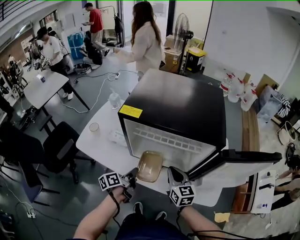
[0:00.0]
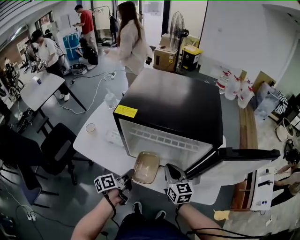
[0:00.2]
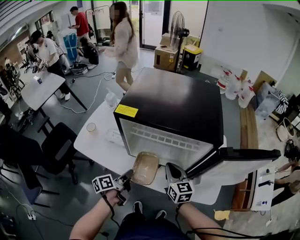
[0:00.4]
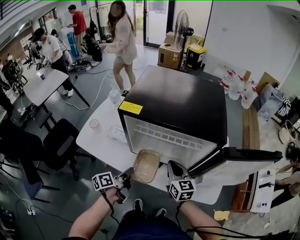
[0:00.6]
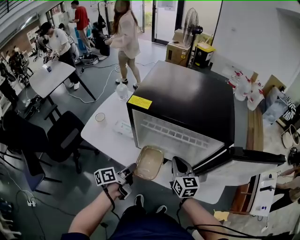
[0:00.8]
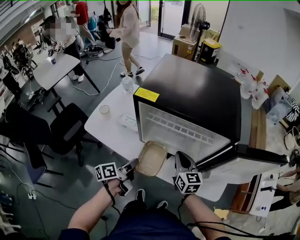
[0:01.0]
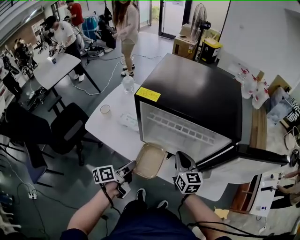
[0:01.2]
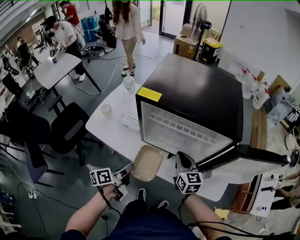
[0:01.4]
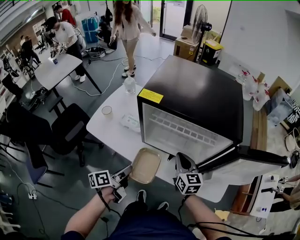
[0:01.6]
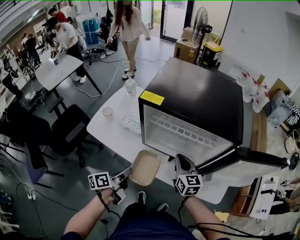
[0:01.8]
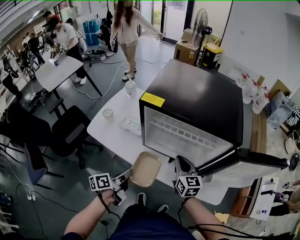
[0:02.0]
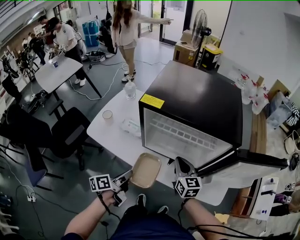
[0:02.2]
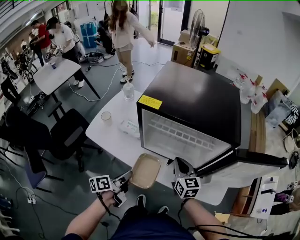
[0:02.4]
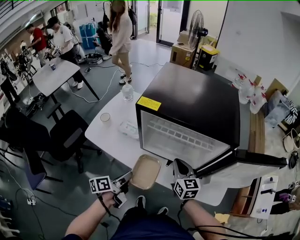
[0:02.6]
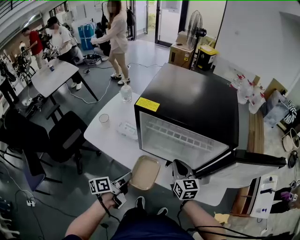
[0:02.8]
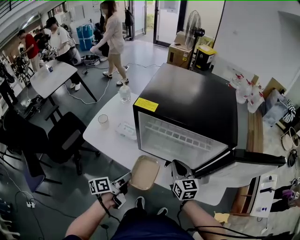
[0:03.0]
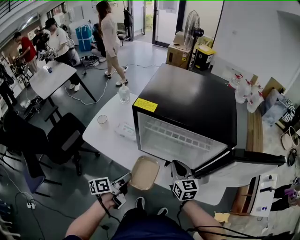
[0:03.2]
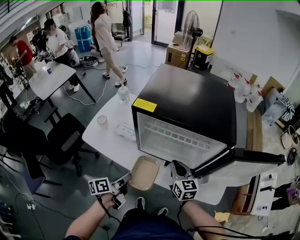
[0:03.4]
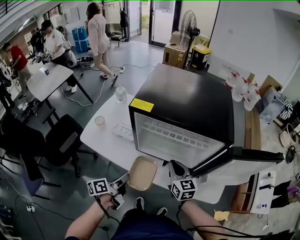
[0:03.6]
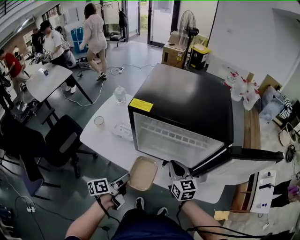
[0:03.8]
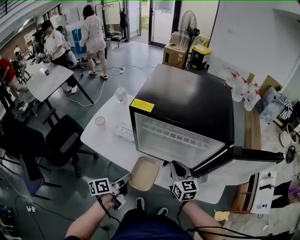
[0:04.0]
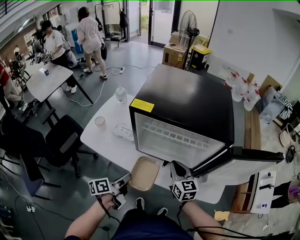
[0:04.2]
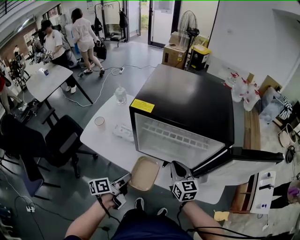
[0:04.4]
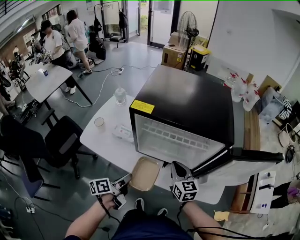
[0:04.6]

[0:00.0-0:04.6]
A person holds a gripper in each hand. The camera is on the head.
0:00.0 to 0:01.6: The left gripper moves backward and to the left, approximately 10 cm.
0:01.6 to 0:03.0: Both grippers stay about where they are.
0:03.0 to 0:04.6: The two grippers keep their place.

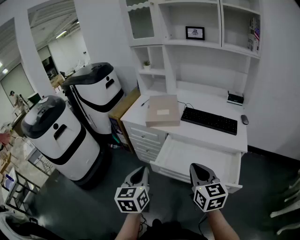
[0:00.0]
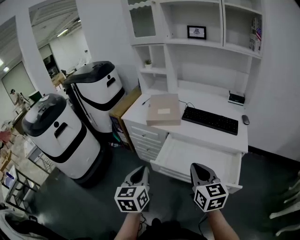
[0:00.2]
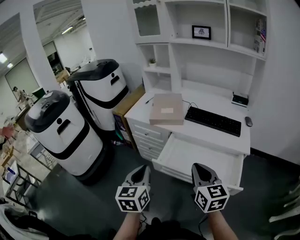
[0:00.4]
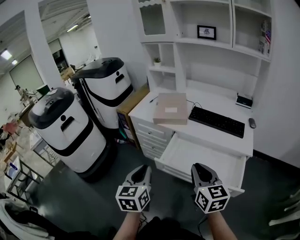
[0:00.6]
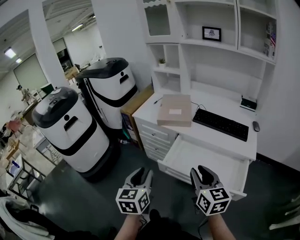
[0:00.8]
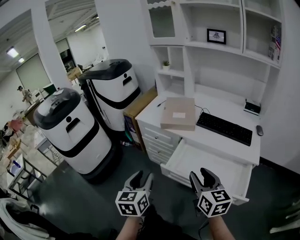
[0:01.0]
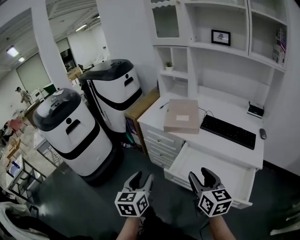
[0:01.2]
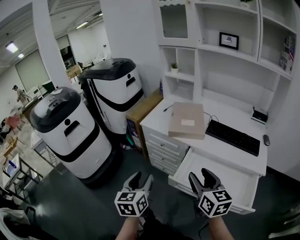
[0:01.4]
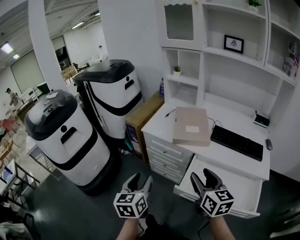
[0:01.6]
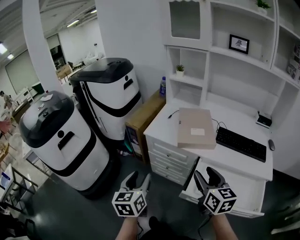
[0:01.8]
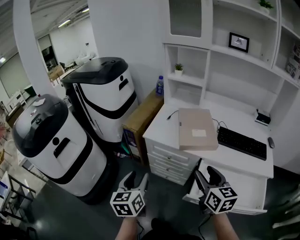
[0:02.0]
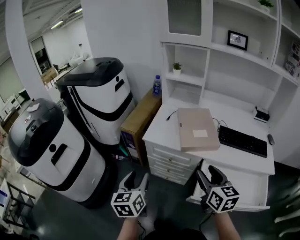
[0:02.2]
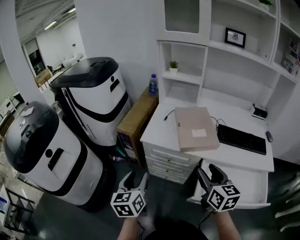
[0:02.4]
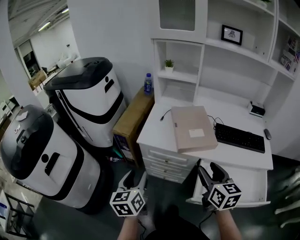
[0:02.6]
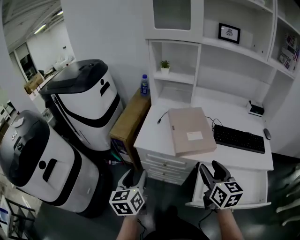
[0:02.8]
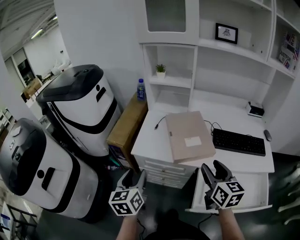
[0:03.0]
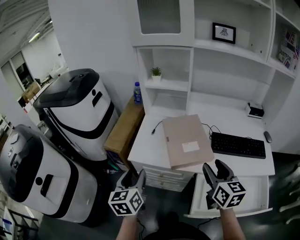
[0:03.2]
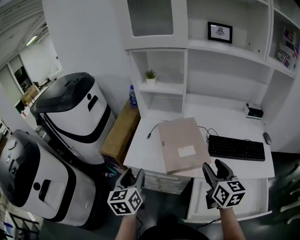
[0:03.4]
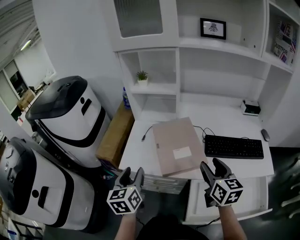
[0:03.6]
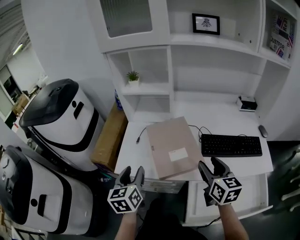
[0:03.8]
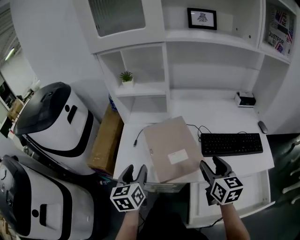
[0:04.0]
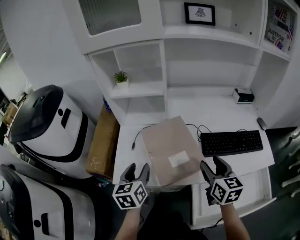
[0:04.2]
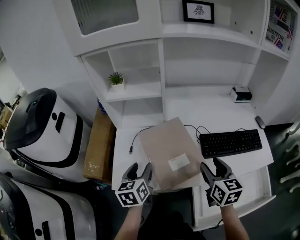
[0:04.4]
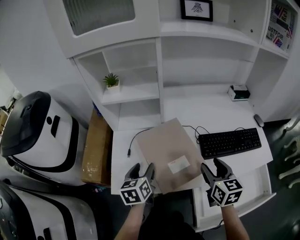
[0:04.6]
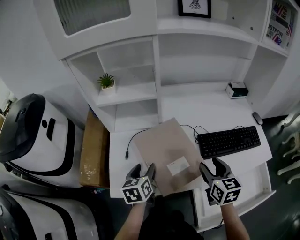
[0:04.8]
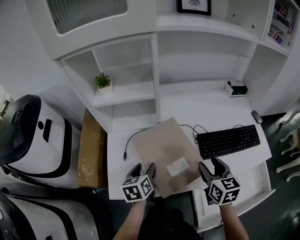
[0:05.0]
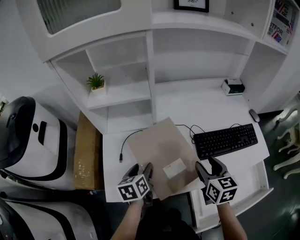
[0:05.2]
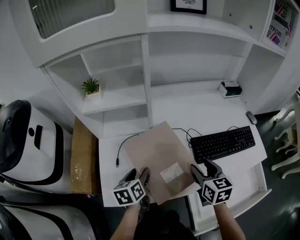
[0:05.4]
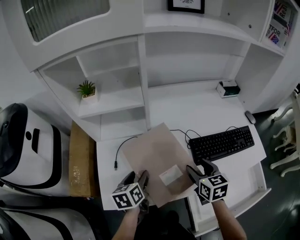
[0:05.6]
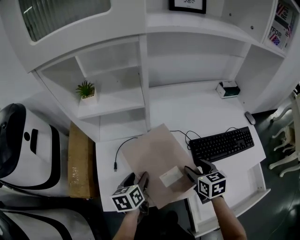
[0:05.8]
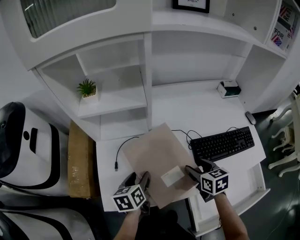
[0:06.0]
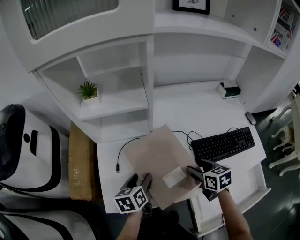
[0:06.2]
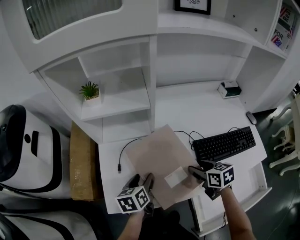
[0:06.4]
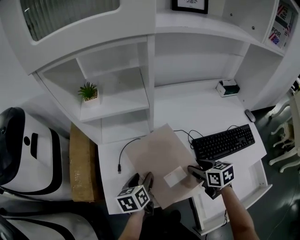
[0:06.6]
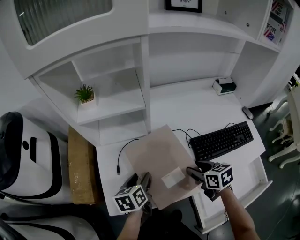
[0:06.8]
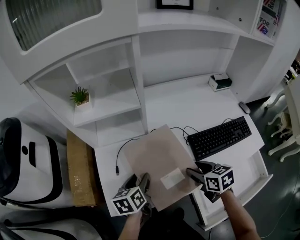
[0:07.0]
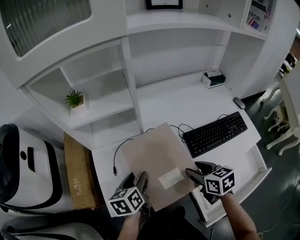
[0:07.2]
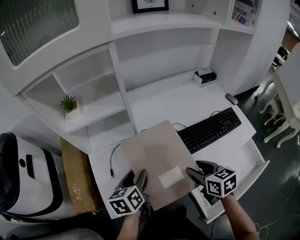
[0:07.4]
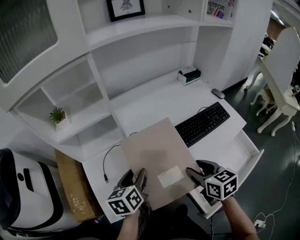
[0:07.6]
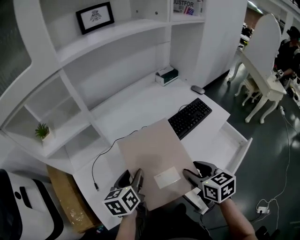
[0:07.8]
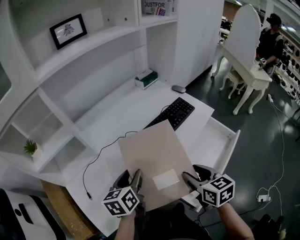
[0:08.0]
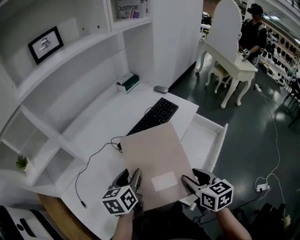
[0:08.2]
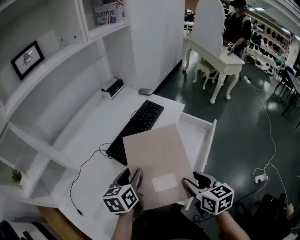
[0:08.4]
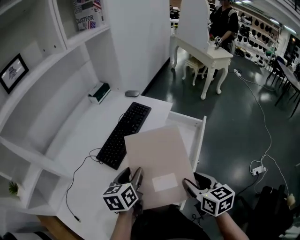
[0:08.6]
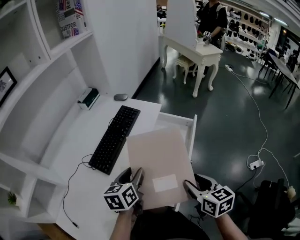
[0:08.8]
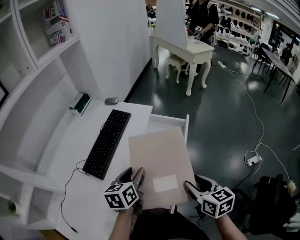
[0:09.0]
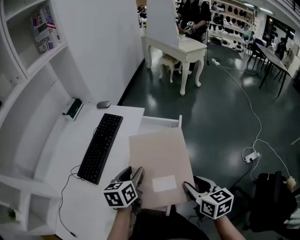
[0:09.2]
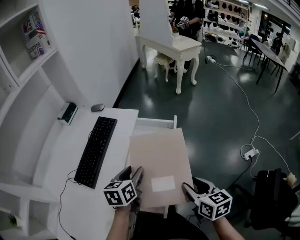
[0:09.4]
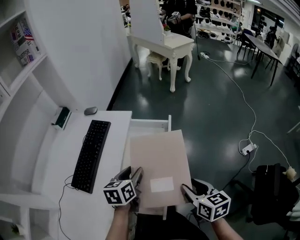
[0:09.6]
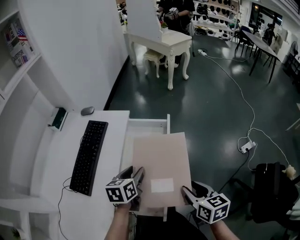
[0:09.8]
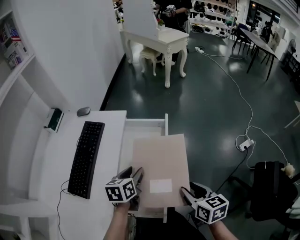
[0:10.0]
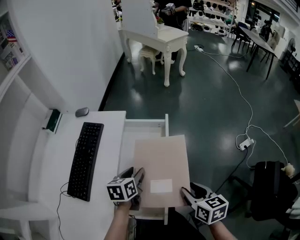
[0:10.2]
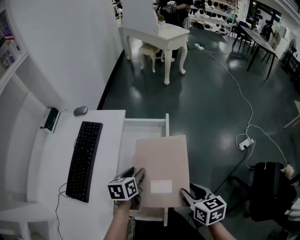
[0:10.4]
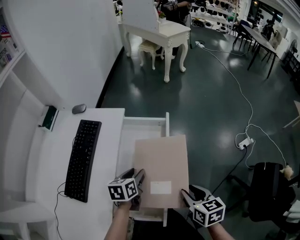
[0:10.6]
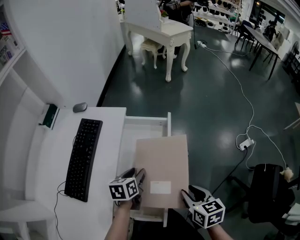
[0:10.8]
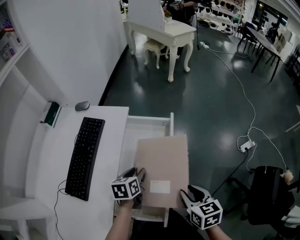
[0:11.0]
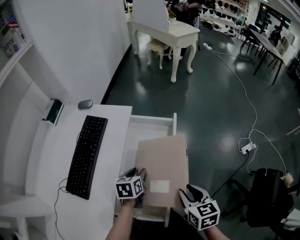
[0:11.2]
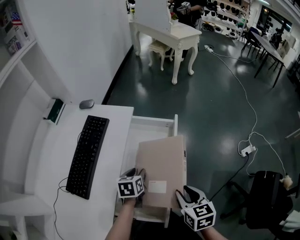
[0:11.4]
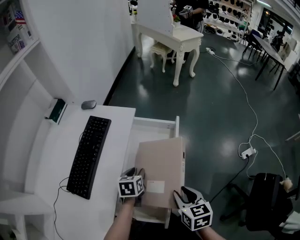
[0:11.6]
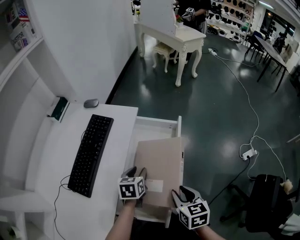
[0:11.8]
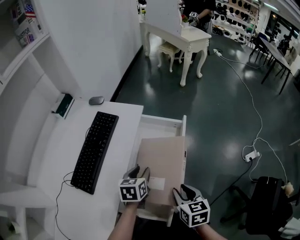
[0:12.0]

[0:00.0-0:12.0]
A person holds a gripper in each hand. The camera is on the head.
0:00.0 to 0:01.6: The left gripper moves to the left and forward, approximately 20 cm, and opens its fingers; the right gripper heads forward and to the left, covering roughly 20 cm, and opens.
0:01.6 to 0:03.0: Both grippers travel together forward, roughly 20 cm.
0:03.0 to 0:04.4: The left gripper is displaced forward and to the right by some 25 cm, while the right gripper heads forward and to the right, covering roughly 15 cm.
0:04.4 to 0:06.0: The grippers both shift downward and forward by about 10 cm.
0:06.0 to 0:07.6: The right gripper shifts approximately 15 cm backward and upward. The left gripper is displaced upward and to the right by about 10 cm.
0:07.6 to 0:09.0: The right gripper changes place by approximately 35 cm, and rotates approximately 50 degrees. The left gripper changes place by some 35 cm, and rotates approximately 50 degrees.
0:09.0 to 0:10.4: The right gripper goes approximately 10 cm downward and to the right. The left gripper travels downward, forward and to the right by some 15 cm, and swivels roughly 20 degrees.
0:10.4 to 0:12.0: The right gripper heads to the left, covering about 5 cm.

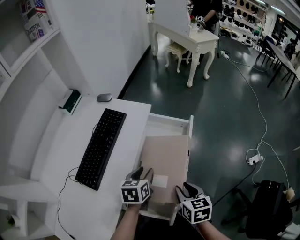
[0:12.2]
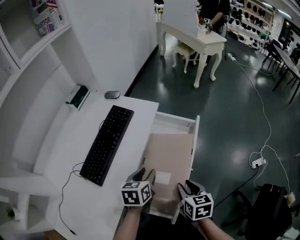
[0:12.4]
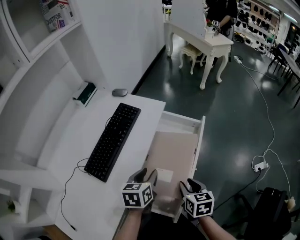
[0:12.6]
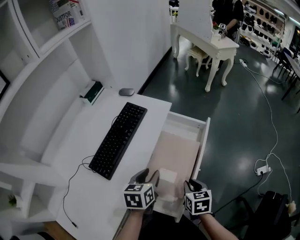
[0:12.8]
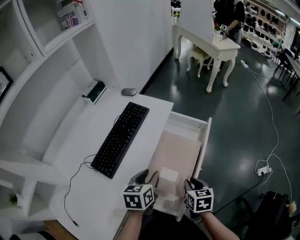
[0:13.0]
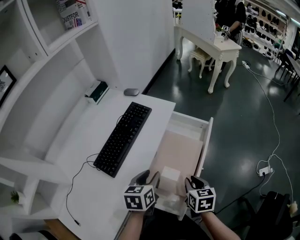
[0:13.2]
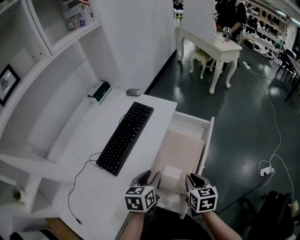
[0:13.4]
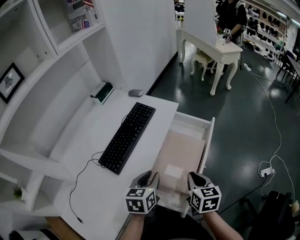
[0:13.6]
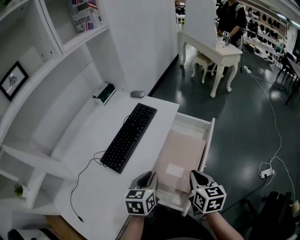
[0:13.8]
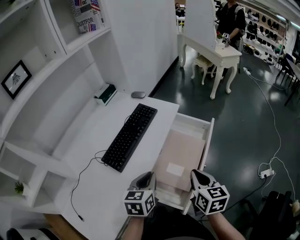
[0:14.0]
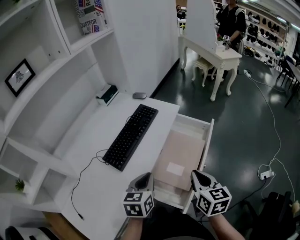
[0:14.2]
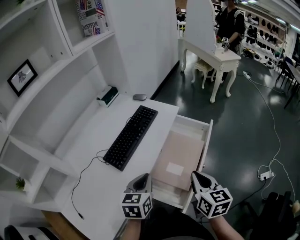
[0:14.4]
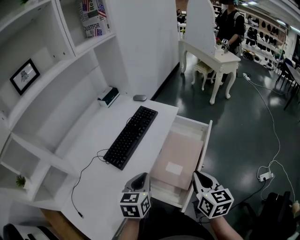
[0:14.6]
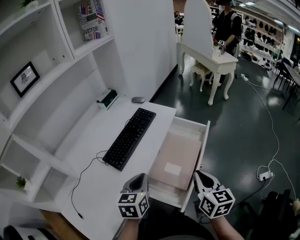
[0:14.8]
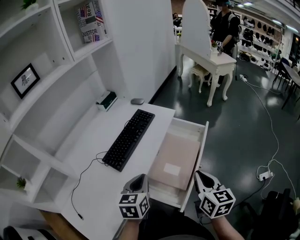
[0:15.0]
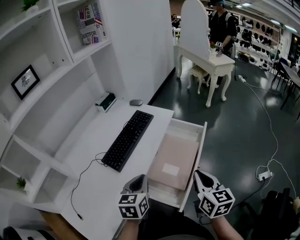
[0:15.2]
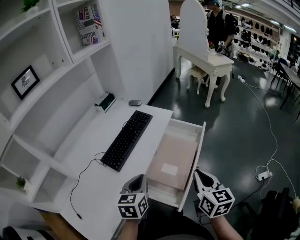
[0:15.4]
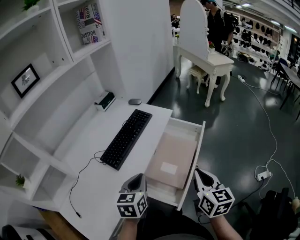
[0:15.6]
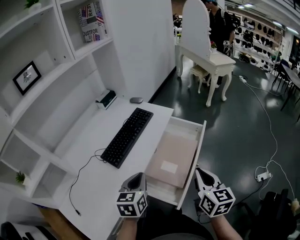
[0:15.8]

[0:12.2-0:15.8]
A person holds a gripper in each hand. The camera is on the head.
0:12.2 to 0:14.0: The left gripper travels backward, upward and to the left by approximately 15 cm, and closes, while the right gripper goes some 10 cm upward and to the left, and closes up.
0:14.0 to 0:15.8: The left gripper ends up about 5 cm from where it was. Meanwhile the right gripper travels upward and backward by about 10 cm.

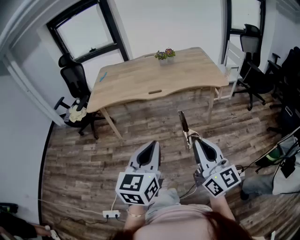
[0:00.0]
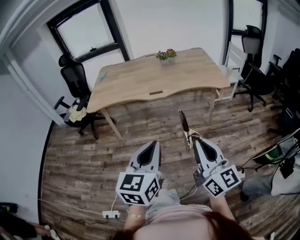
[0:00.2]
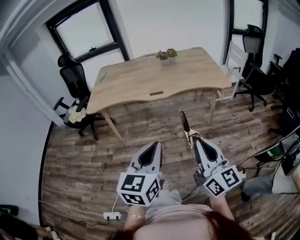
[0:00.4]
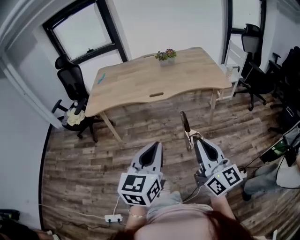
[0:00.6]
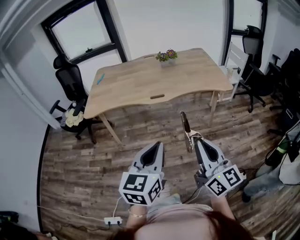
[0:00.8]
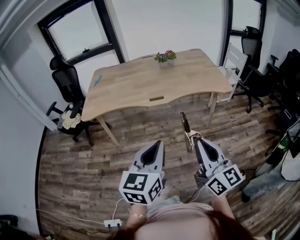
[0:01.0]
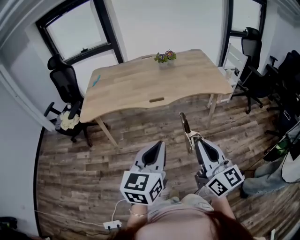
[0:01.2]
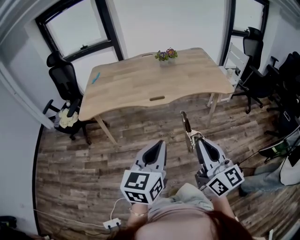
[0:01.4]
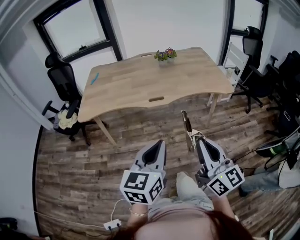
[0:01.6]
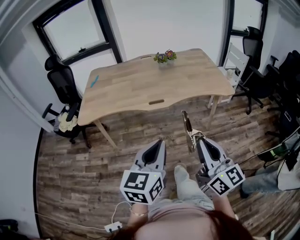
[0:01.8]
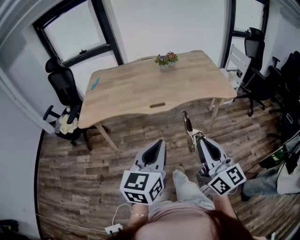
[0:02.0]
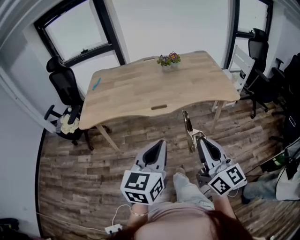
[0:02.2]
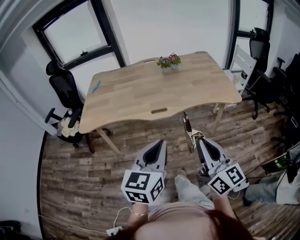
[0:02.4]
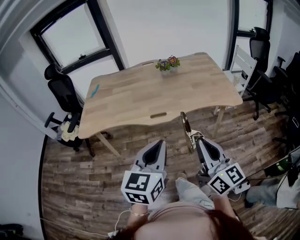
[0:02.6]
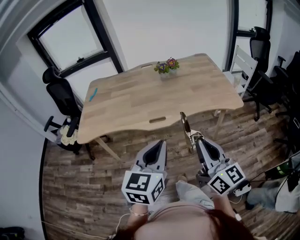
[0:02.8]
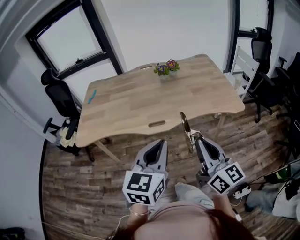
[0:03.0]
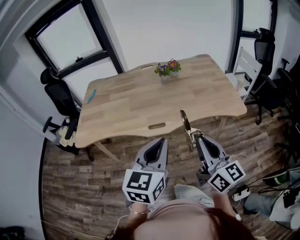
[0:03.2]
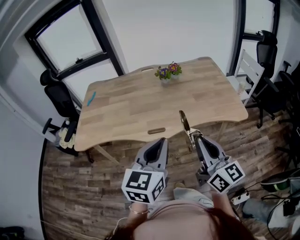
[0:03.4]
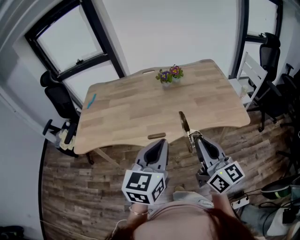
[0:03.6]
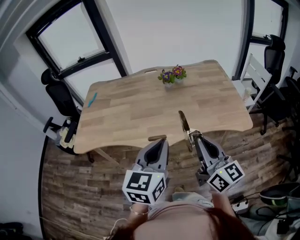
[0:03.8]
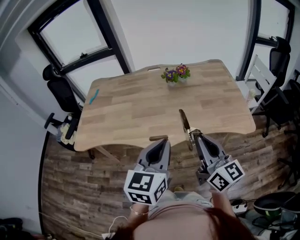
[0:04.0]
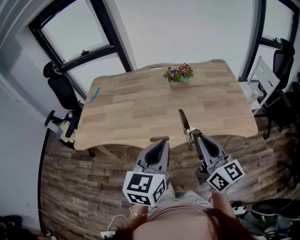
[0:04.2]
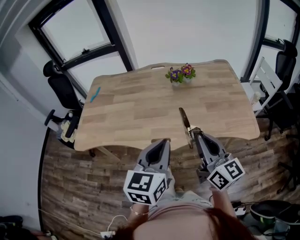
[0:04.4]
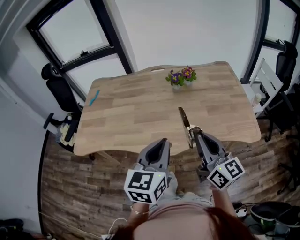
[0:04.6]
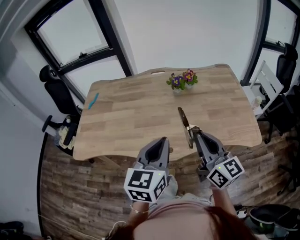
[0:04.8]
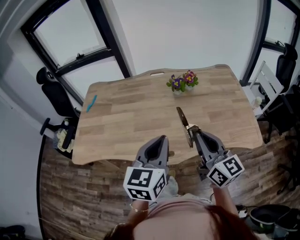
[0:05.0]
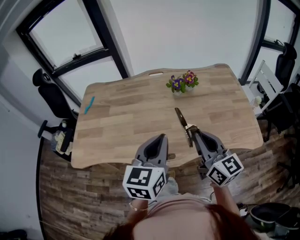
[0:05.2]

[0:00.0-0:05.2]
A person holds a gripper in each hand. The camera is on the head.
0:00.0 to 0:01.8: Both grippers move forward, approximately 15 cm.
0:01.8 to 0:03.4: The grippers both shift forward by approximately 25 cm.
0:03.4 to 0:05.2: Both grippers travel together forward, approximately 25 cm.
